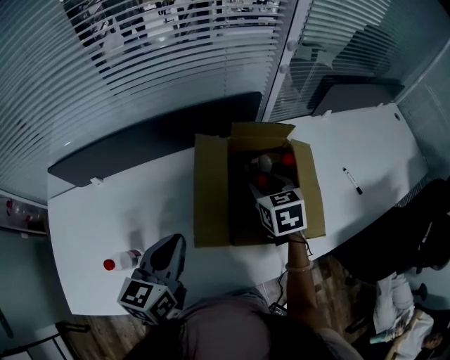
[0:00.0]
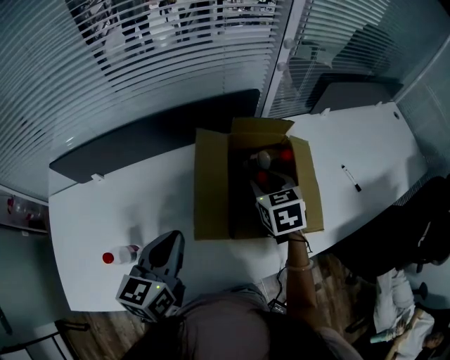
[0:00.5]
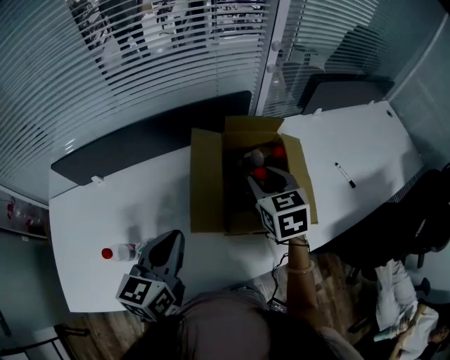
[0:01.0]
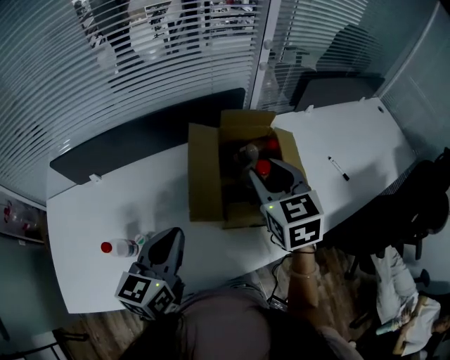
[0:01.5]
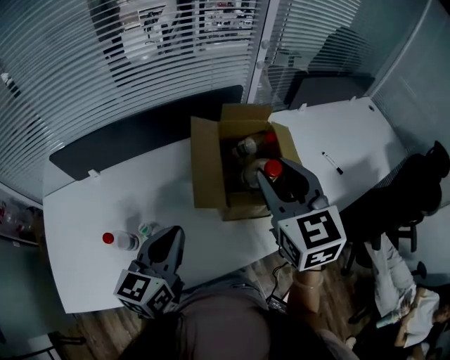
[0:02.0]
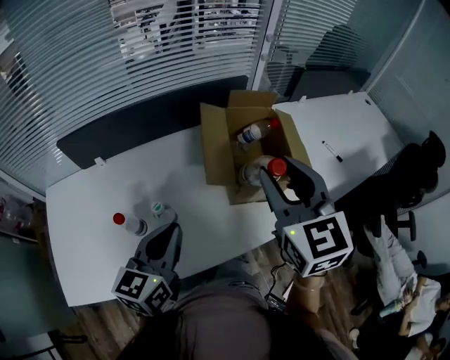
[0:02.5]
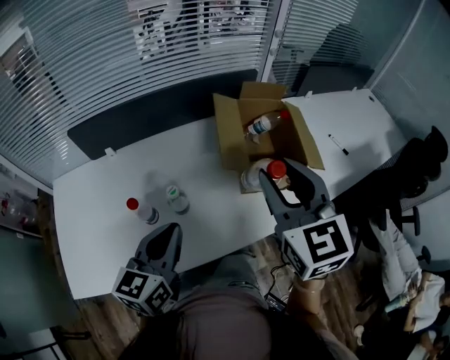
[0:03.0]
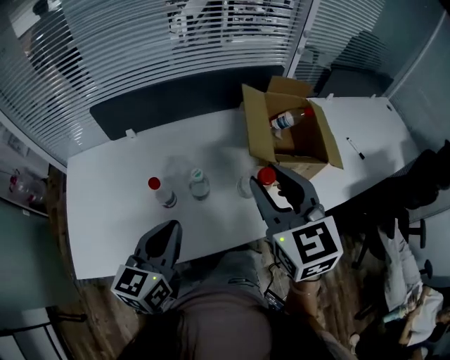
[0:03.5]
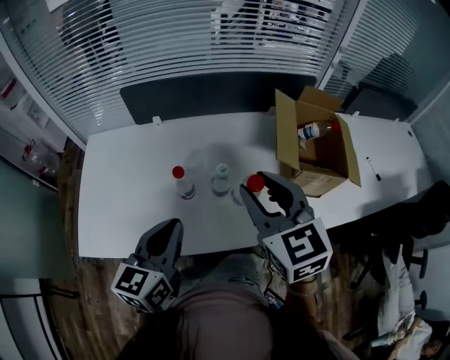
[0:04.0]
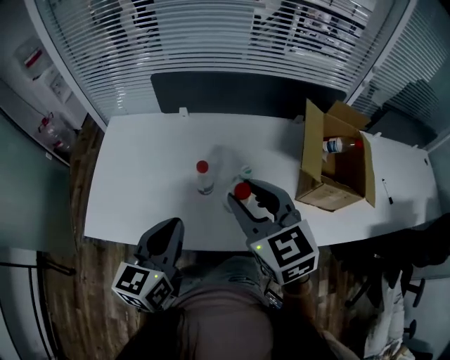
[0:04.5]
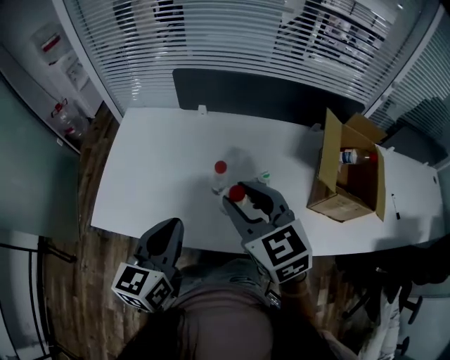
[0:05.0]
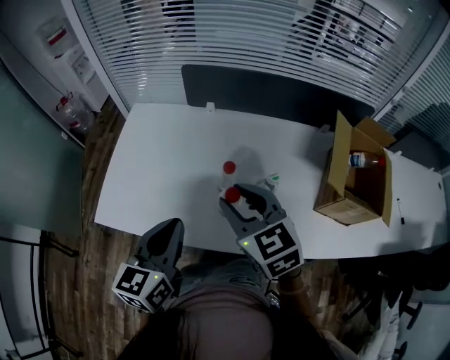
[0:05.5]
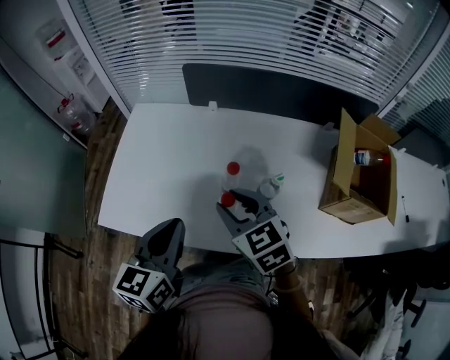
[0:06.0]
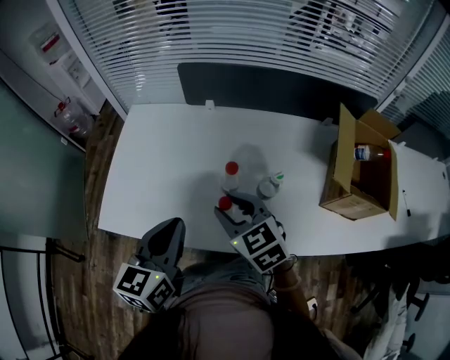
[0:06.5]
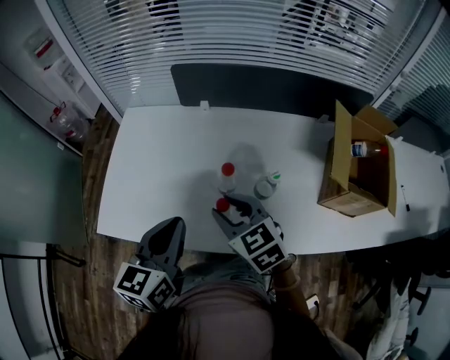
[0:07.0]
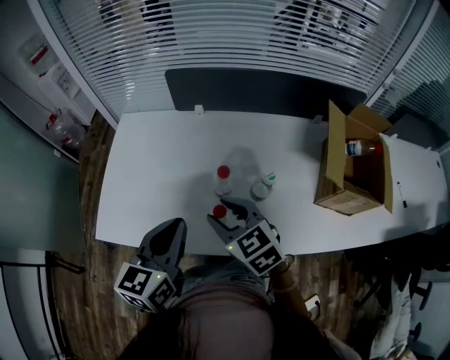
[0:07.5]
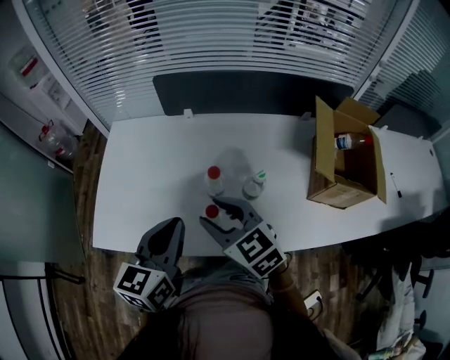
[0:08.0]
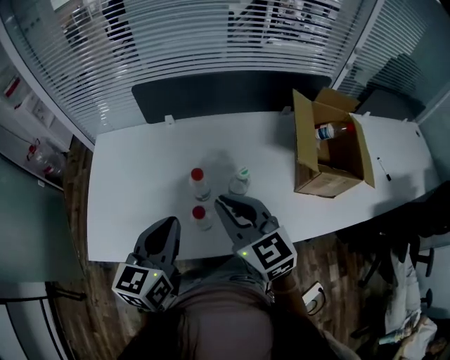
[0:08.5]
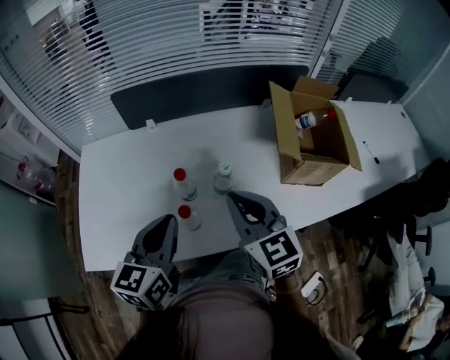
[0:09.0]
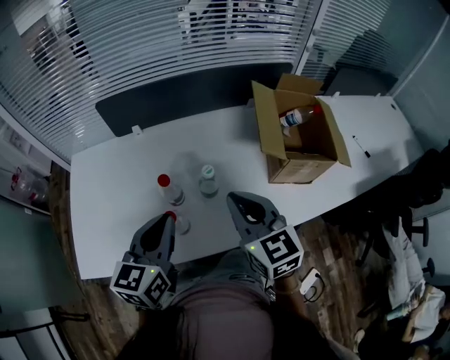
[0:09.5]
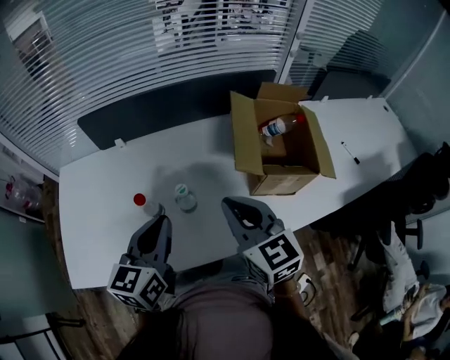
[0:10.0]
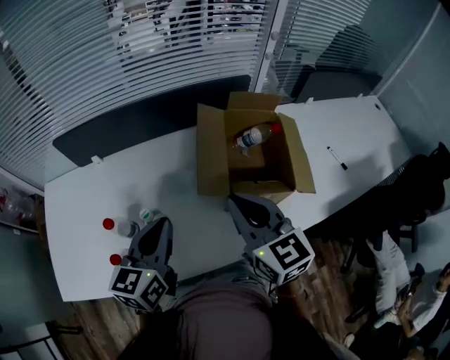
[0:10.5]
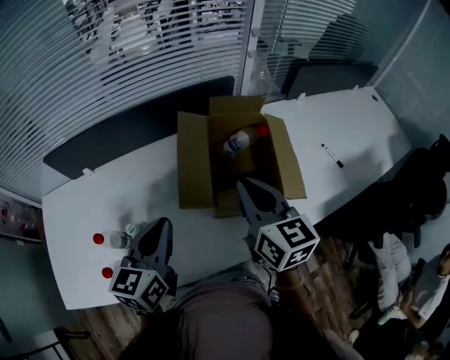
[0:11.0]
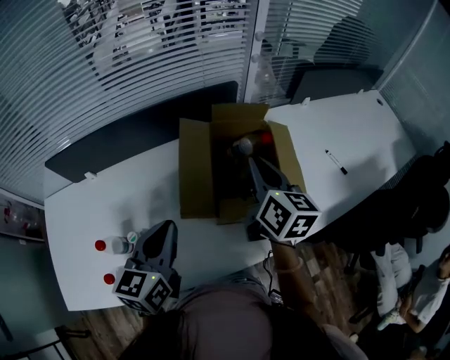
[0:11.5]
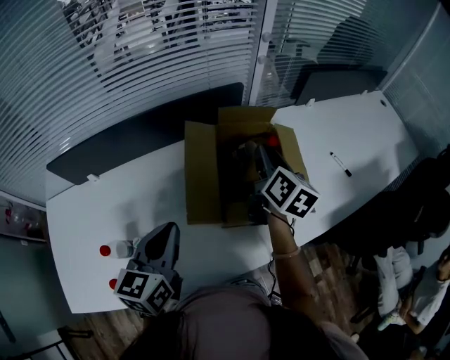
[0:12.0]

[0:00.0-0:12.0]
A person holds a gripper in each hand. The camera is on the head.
0.0 to 2.0 s: The left gripper moves backward, some 10 cm. Meanwhile the right gripper heads upward and backward, covering approximately 25 cm, and changes its angle by roughly 30 degrees.
2.0 to 4.0 s: The grippers both shift to the left and backward by roughly 25 cm. The right gripper turns by approximately 20 degrees.
4.0 to 6.0 s: The right gripper is displaced to the left and downward by roughly 20 cm, and rotates roughly 30 degrees; the left gripper moves to the left, about 10 cm.
6.0 to 8.0 s: There are only small adjustments of the grippers.
8.0 to 10.0 s: The right gripper goes approximately 25 cm to the right, turns by approximately 30 degrees, and closes its fingers. Meanwhile the left gripper moves to the right, about 15 cm.
10.0 to 12.0 s: The right gripper shifts some 35 cm to the right and forward, and rotates roughly 50 degrees. The left gripper heads to the right and forward, covering roughly 20 cm.

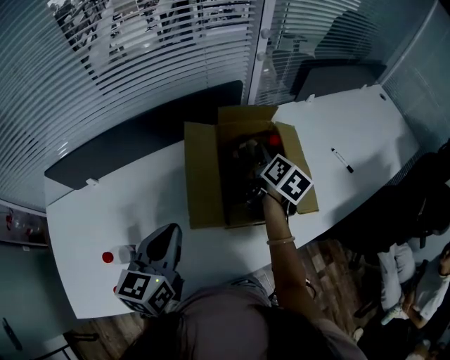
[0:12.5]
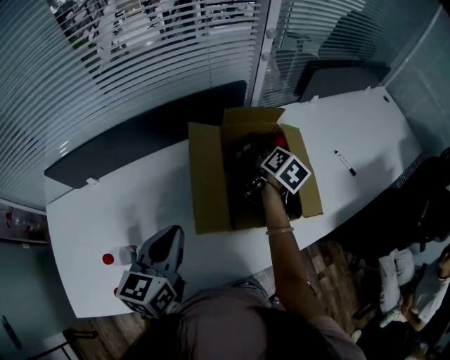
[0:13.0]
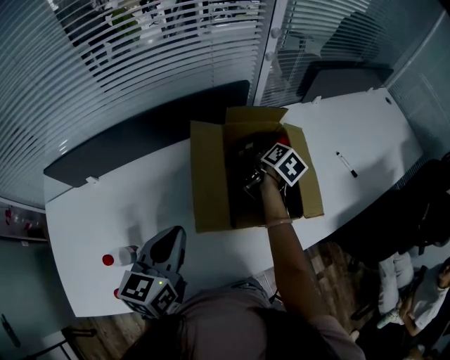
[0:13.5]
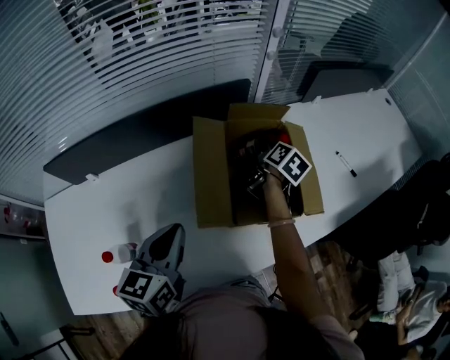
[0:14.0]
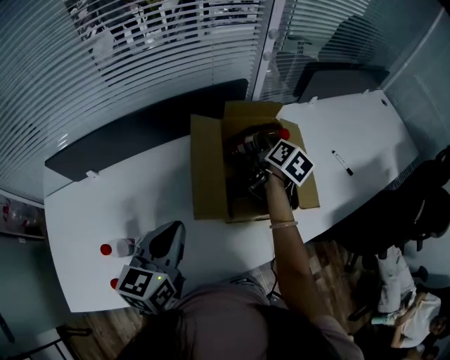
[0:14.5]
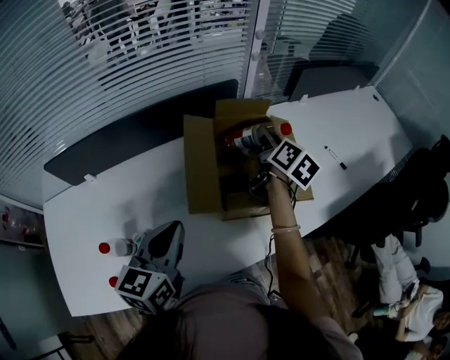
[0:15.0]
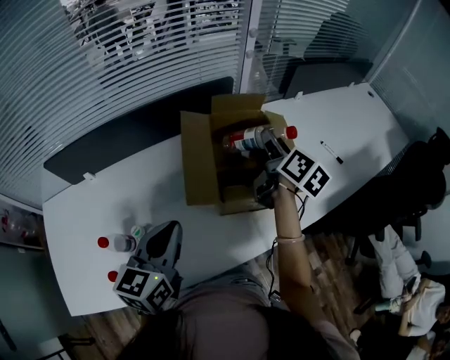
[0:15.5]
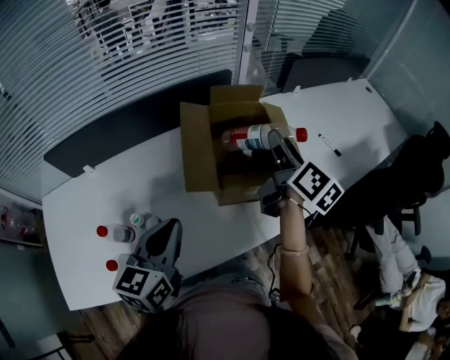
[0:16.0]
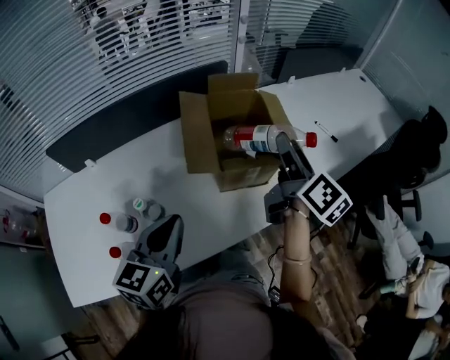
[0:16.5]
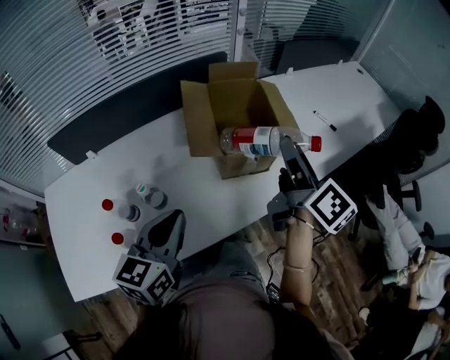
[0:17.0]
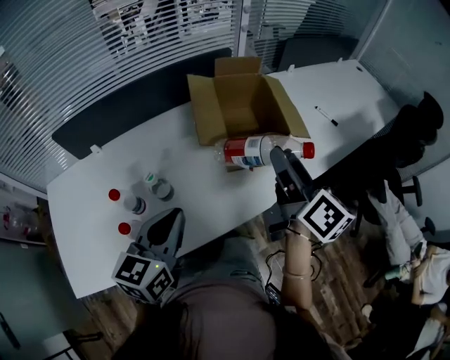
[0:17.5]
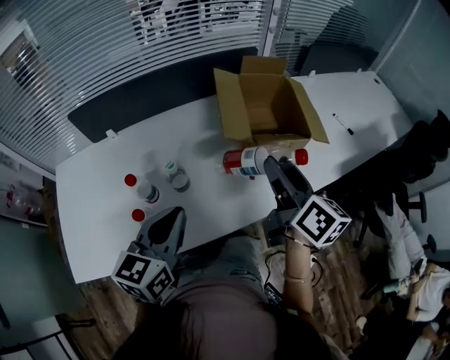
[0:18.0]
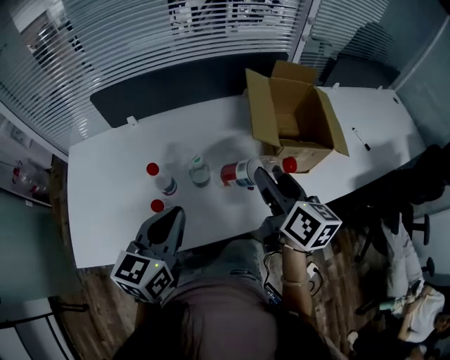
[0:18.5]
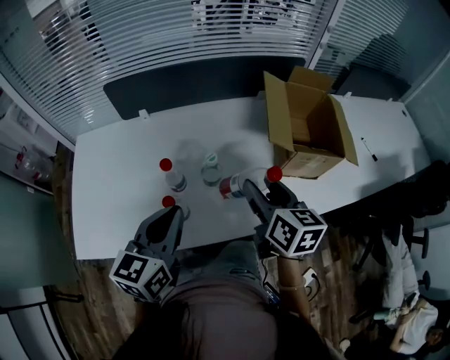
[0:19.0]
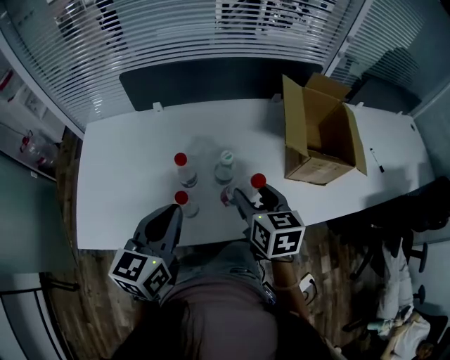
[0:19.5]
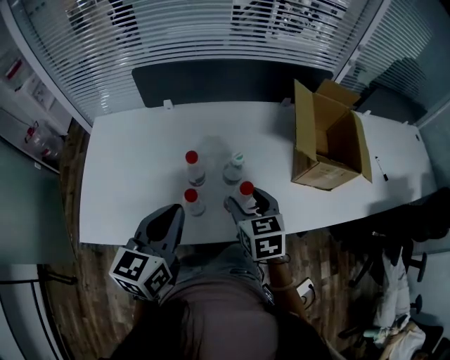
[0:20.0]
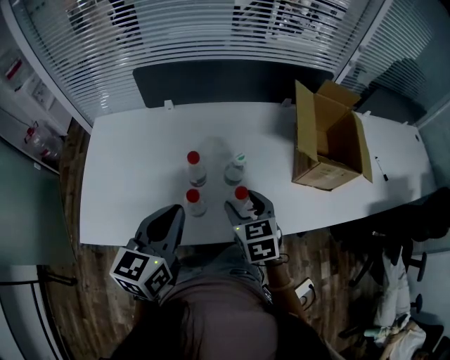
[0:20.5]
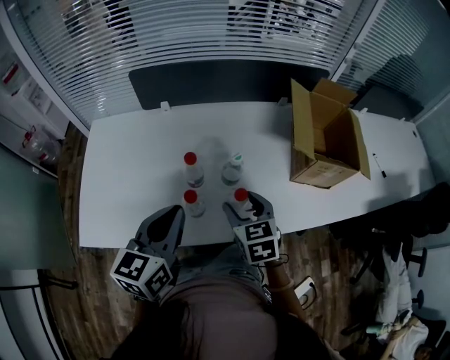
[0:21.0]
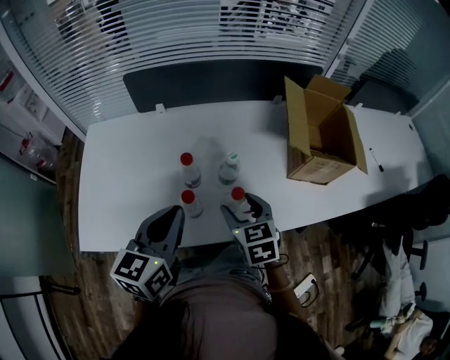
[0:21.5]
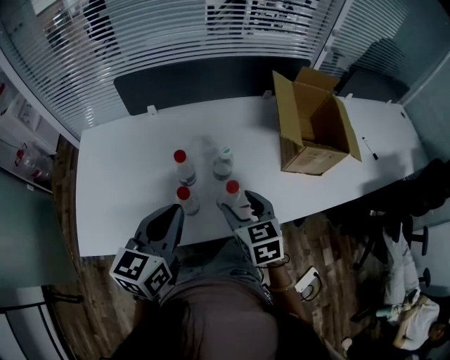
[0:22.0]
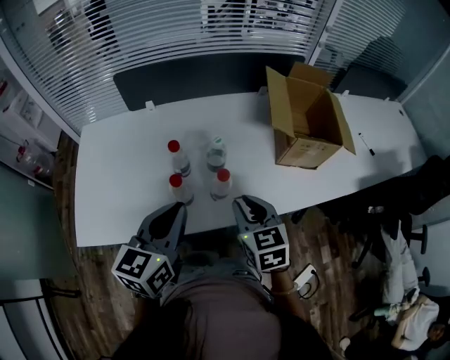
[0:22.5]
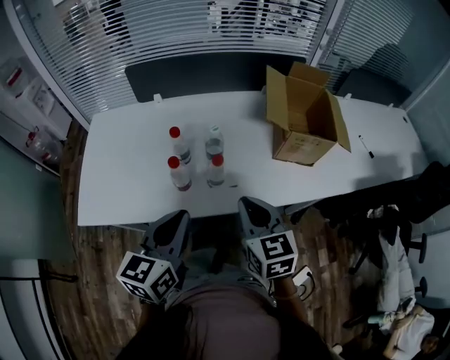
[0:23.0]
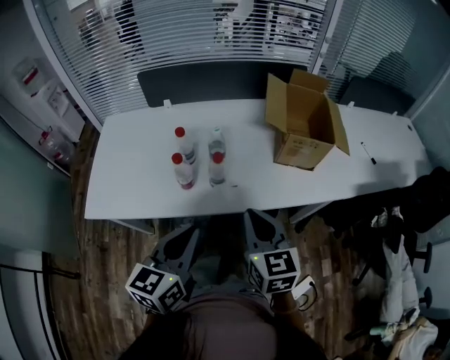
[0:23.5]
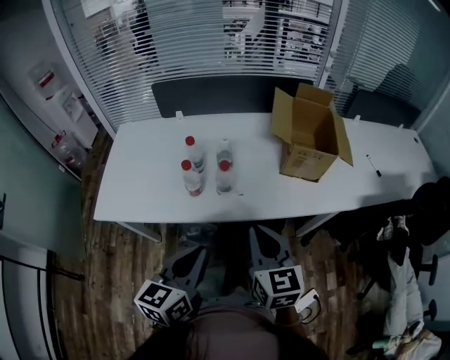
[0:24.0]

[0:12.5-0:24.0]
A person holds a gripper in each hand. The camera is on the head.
14.5 to 16.5 s: The left gripper is displaced backward by some 10 cm. Meanwhile the right gripper goes about 25 cm backward and upward, and rotates some 30 degrees.
16.5 to 18.5 s: The left gripper heads to the left and backward, covering roughly 15 cm. Meanwhile the right gripper moves to the left and backward, some 25 cm, and swivels some 30 degrees.
18.5 to 20.0 s: The left gripper goes some 10 cm to the left; the right gripper heads to the left and downward, covering about 20 cm, and turns by roughly 40 degrees.
20.0 to 22.0 s: The grippers move only a little.
22.0 to 24.0 s: The left gripper moves backward and to the right, roughly 25 cm; the right gripper heads backward, upward and to the right, covering approximately 25 cm, and closes up.

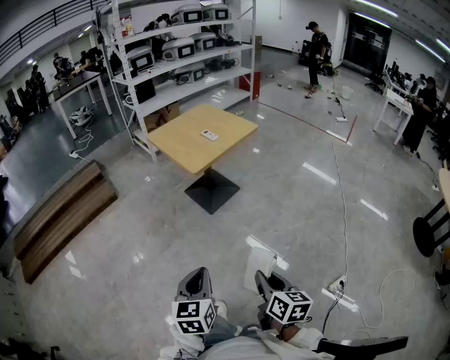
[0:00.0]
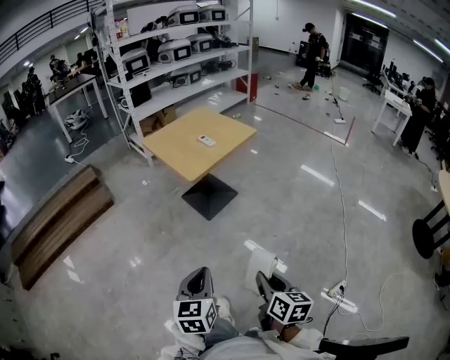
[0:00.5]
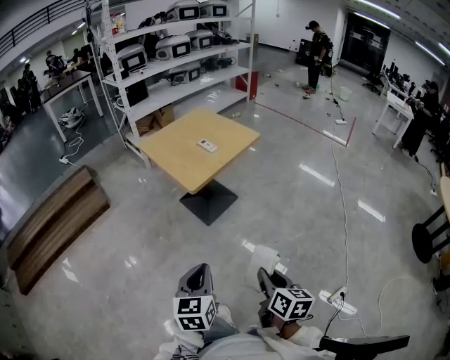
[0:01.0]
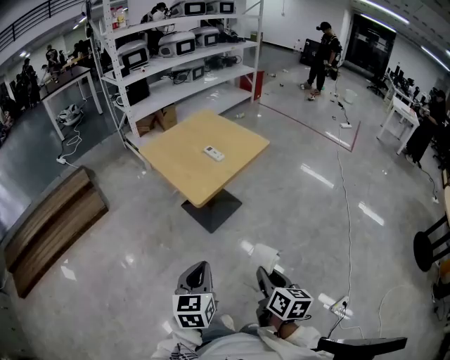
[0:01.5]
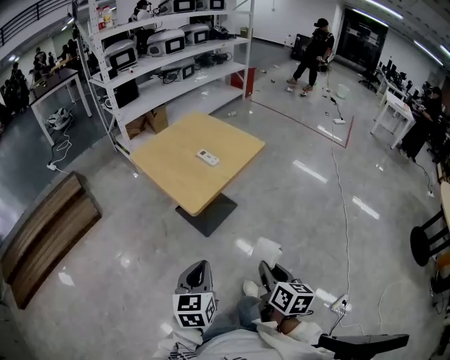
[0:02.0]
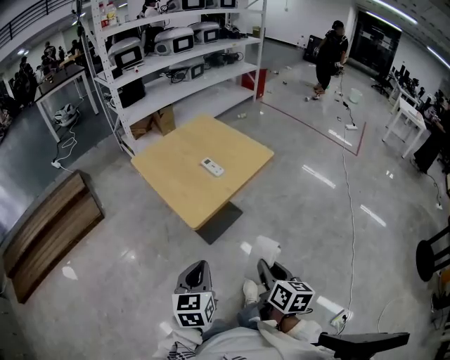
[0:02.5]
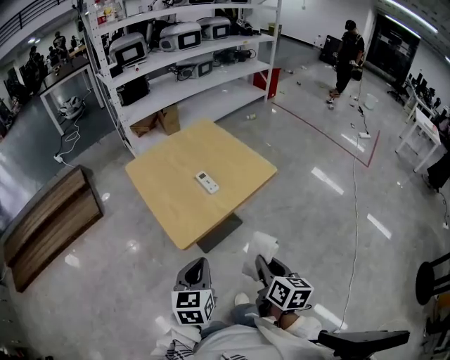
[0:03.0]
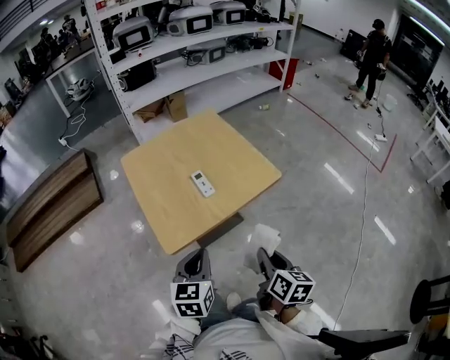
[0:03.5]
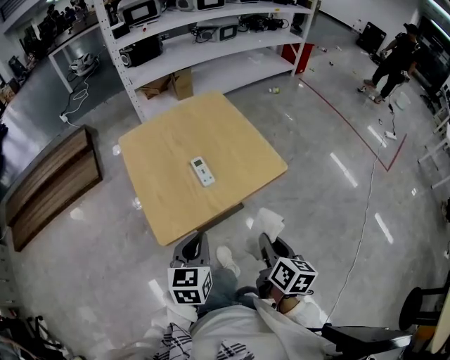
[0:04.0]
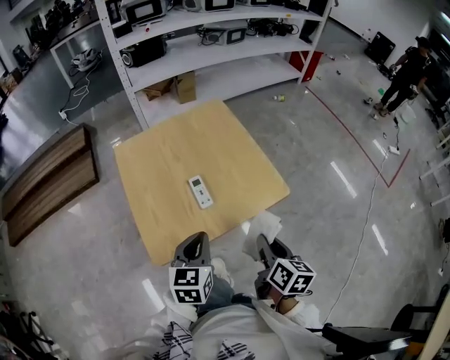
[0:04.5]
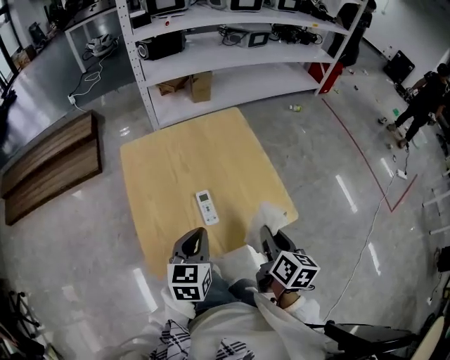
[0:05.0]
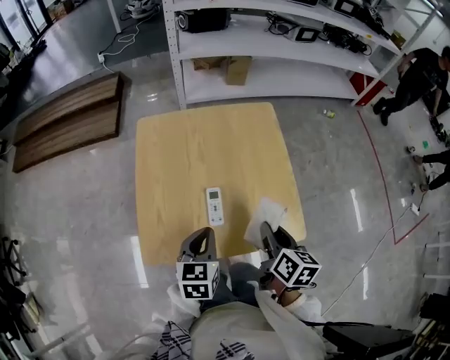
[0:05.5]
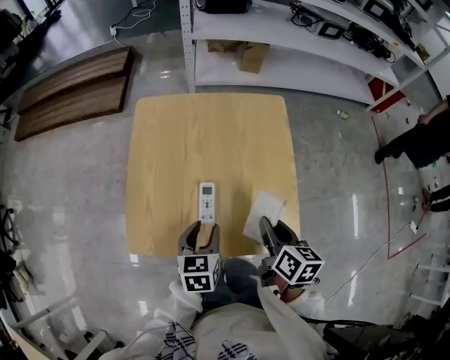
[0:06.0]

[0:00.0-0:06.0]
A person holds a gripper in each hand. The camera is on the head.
0.0 to 2.0 s: Both grippers travel together forward, about 30 cm.
2.0 to 4.0 s: The right gripper shifts approximately 35 cm forward. Meanwhile the left gripper shifts approximately 35 cm forward and to the right.
4.0 to 6.0 s: The left gripper changes place by about 20 cm, turns by about 30 degrees, and opens up; the right gripper changes place by approximately 30 cm, and turns by some 30 degrees.
